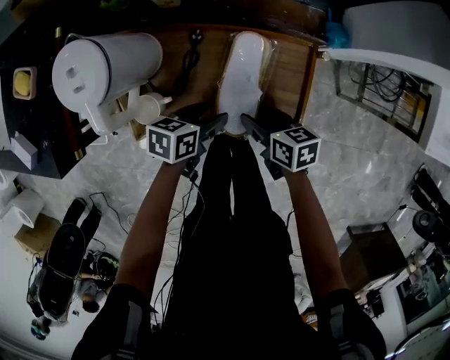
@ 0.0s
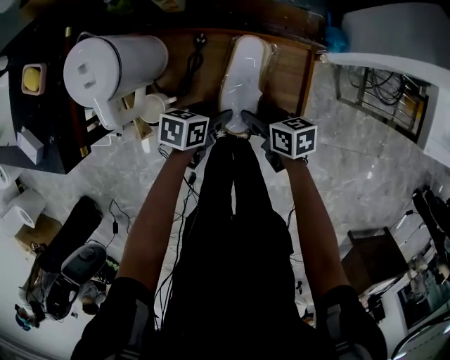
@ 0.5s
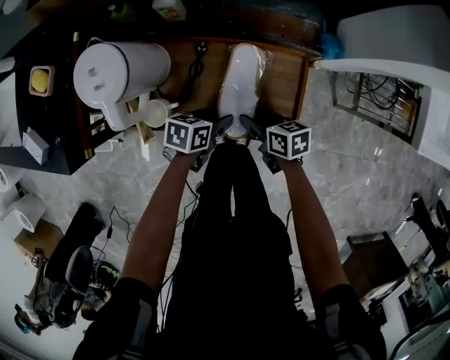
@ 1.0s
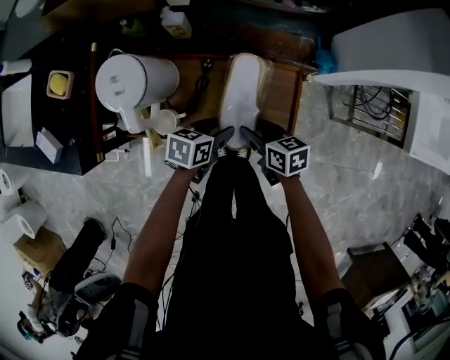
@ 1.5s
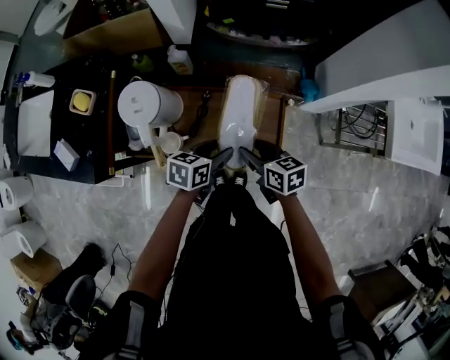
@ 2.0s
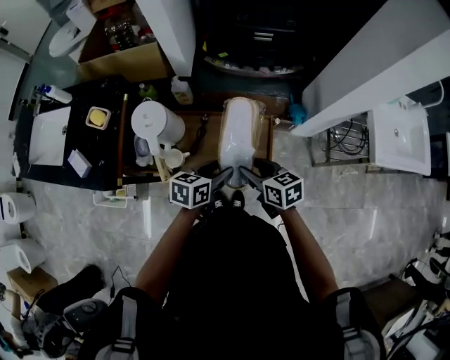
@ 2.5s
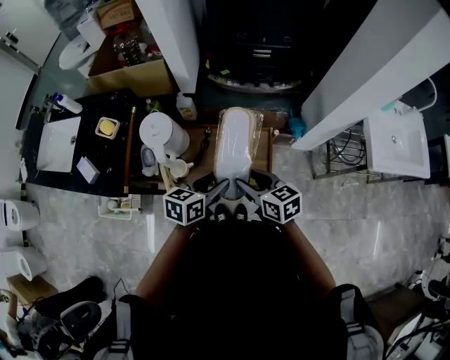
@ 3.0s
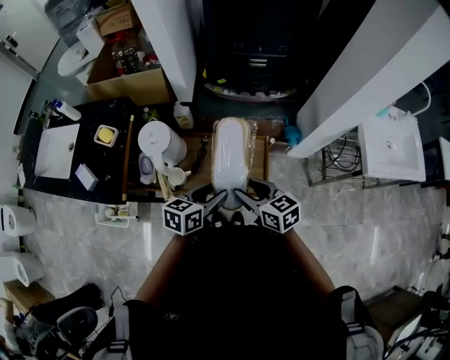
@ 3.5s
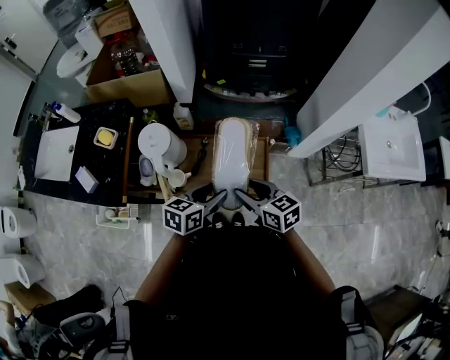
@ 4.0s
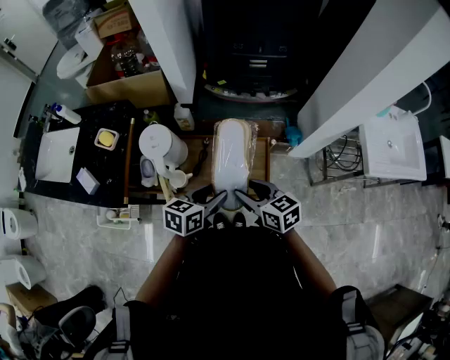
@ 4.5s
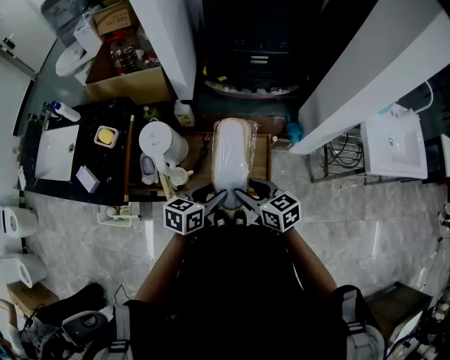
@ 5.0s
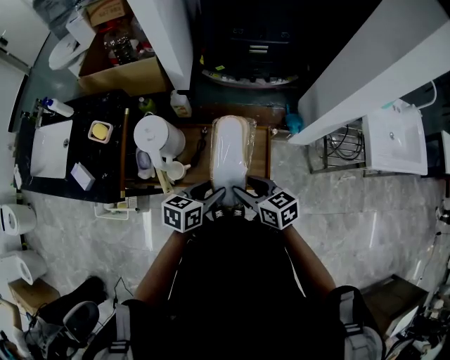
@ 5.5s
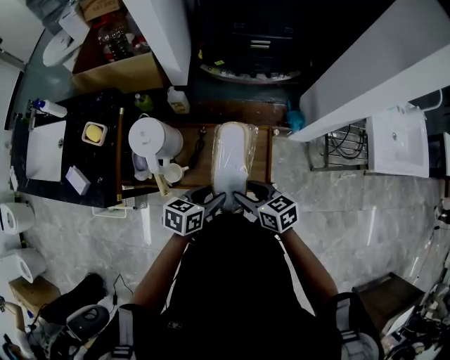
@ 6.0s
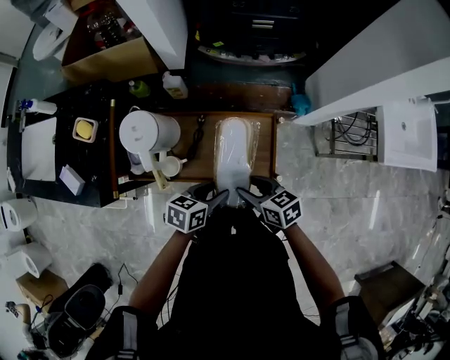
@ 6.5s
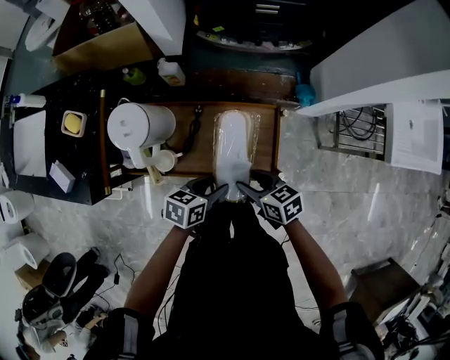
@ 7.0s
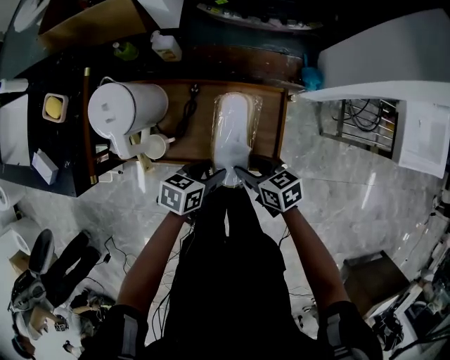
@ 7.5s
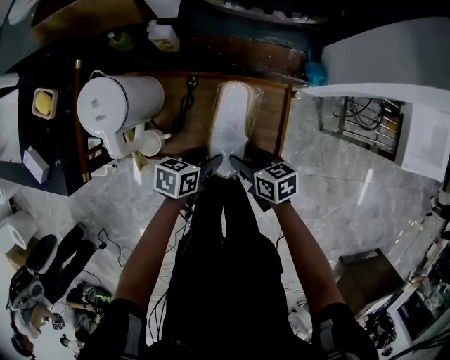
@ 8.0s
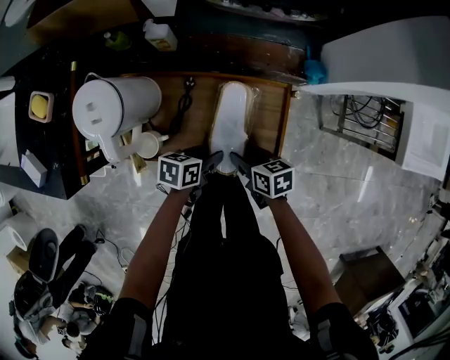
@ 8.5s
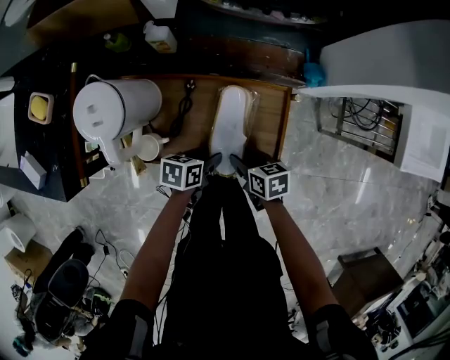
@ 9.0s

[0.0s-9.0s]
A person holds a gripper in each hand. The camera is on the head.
0.0s to 2.0s: Both grippers travel together upward, roughly 15 cm.
2.0s to 4.5s: Both grippers travel together upward and backward, roughly 15 cm.
4.5s to 7.0s: Both grippers move downward, about 15 cm.
7.0s to 9.0s: Both grippers move downward, about 15 cm.

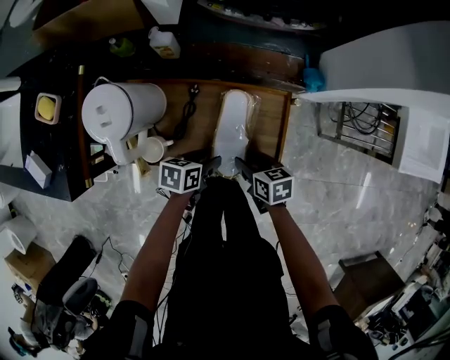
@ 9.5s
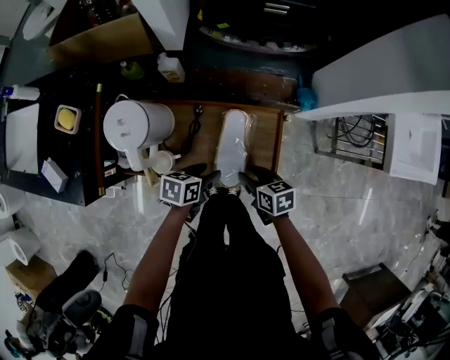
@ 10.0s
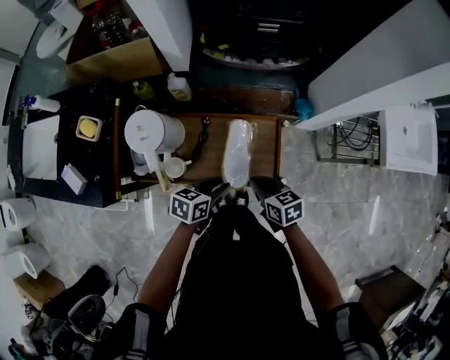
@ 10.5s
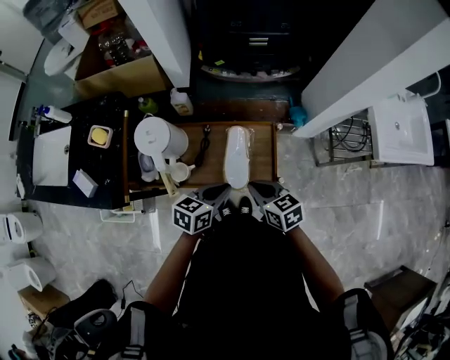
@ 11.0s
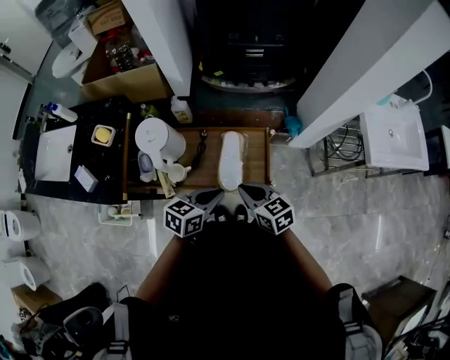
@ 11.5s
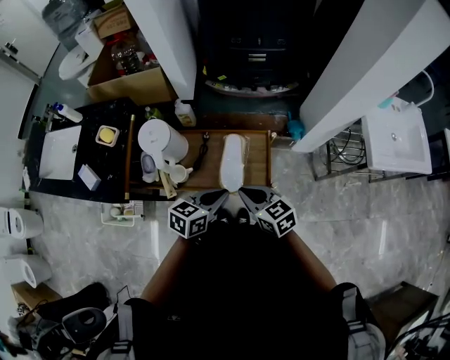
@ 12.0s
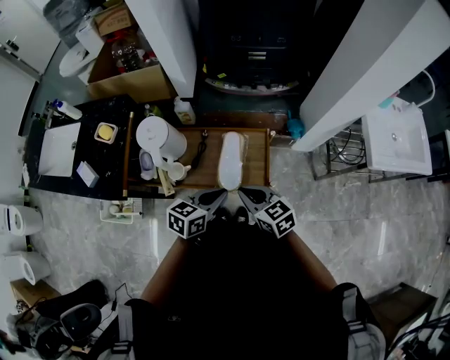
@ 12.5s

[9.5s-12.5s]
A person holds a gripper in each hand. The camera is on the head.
9.5s to 11.0s: The grippers both shift upward by roughly 20 cm. The right gripper changes its angle by approximately 20 degrees, and closes, while the left gripper turns by about 30 degrees, and closes its fingers.
11.0s to 12.5s: The left gripper shifts by some 5 cm, while the right gripper moves approximately 5 cm.

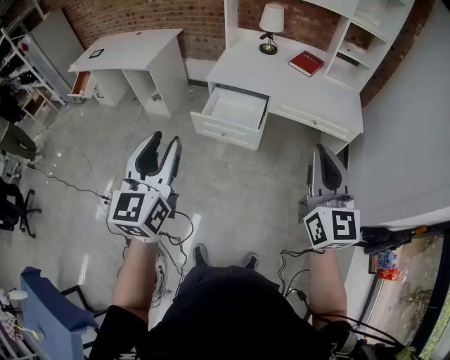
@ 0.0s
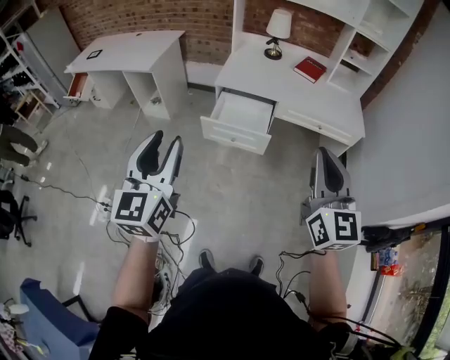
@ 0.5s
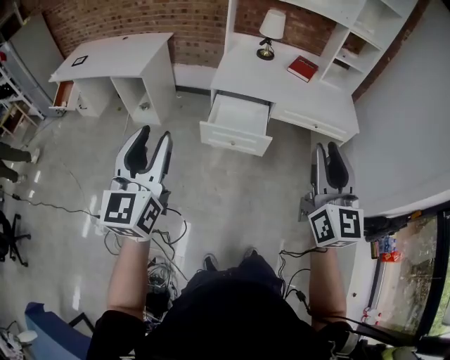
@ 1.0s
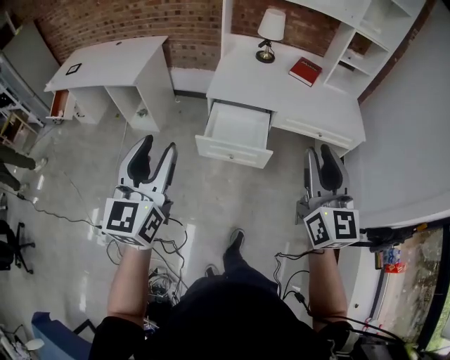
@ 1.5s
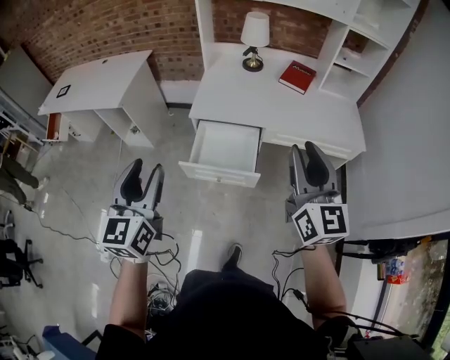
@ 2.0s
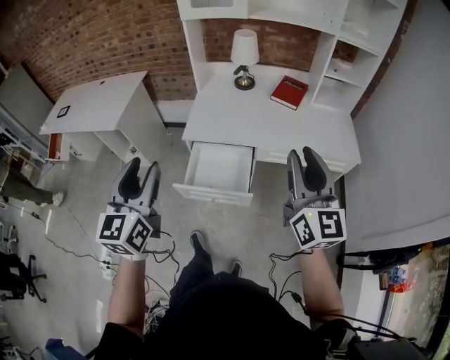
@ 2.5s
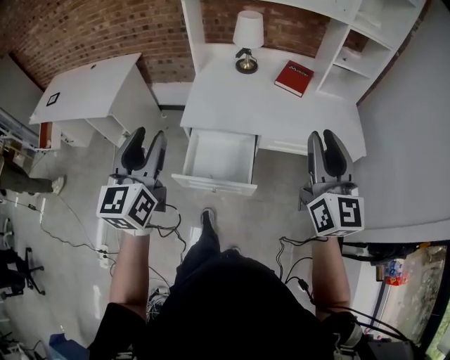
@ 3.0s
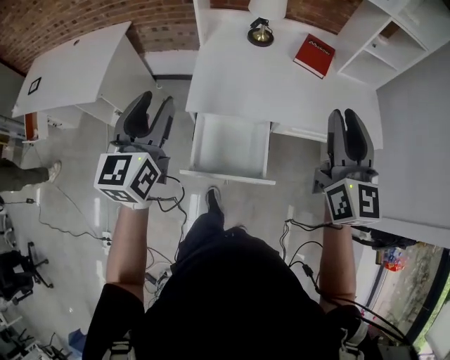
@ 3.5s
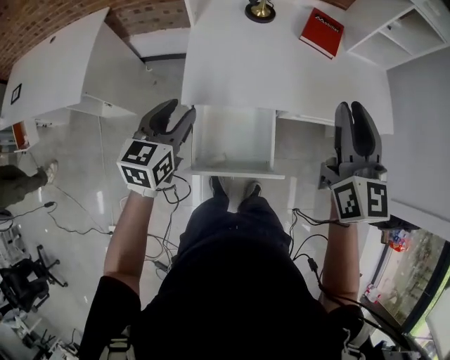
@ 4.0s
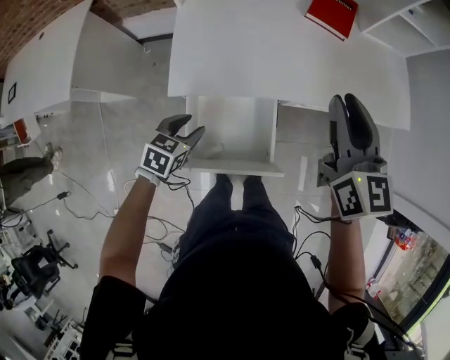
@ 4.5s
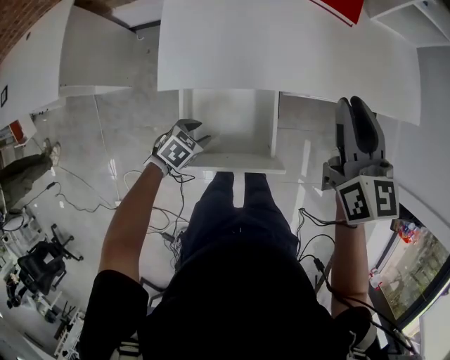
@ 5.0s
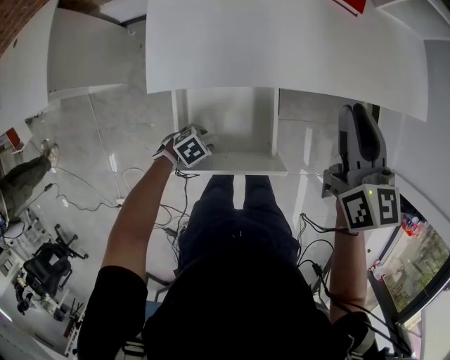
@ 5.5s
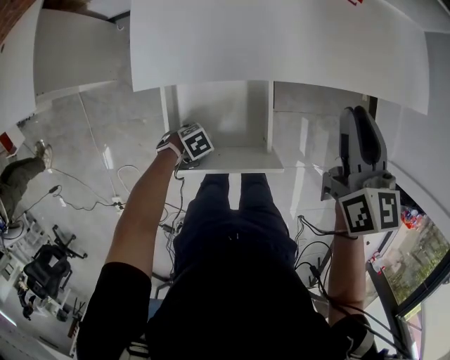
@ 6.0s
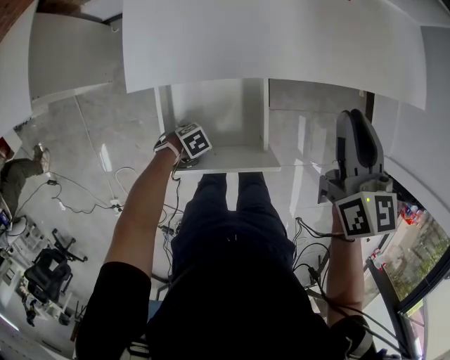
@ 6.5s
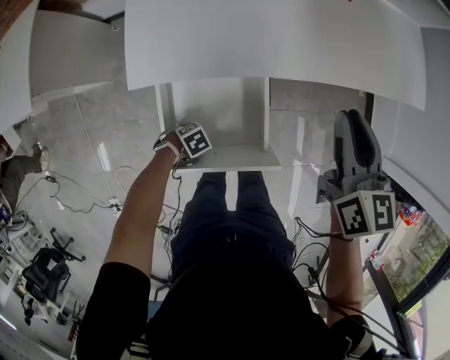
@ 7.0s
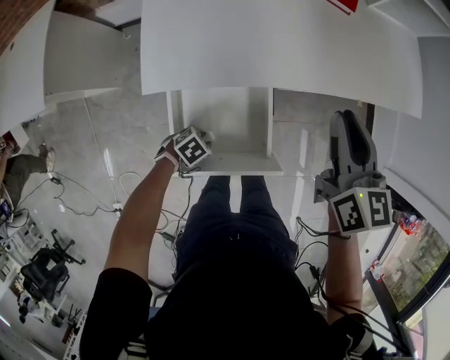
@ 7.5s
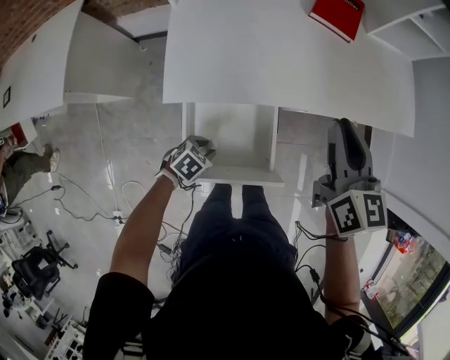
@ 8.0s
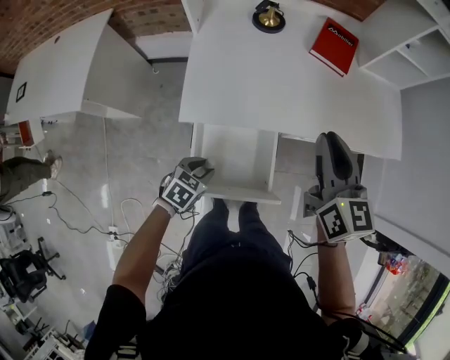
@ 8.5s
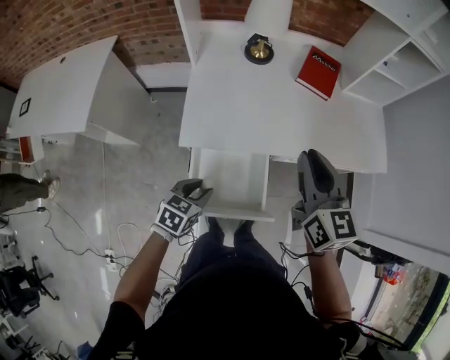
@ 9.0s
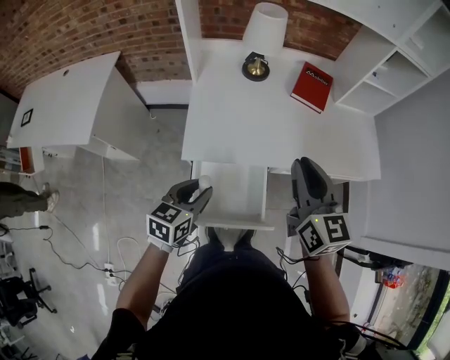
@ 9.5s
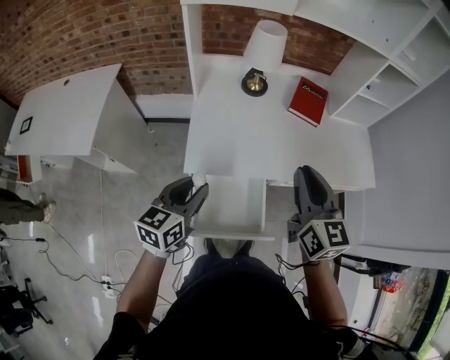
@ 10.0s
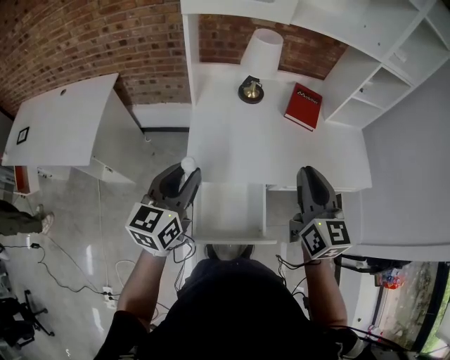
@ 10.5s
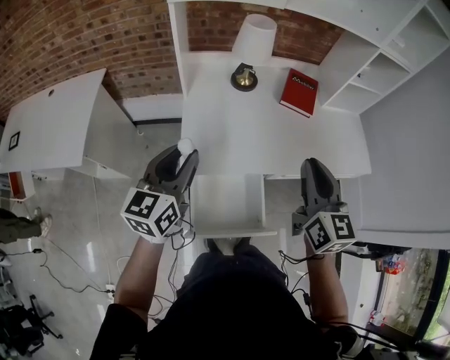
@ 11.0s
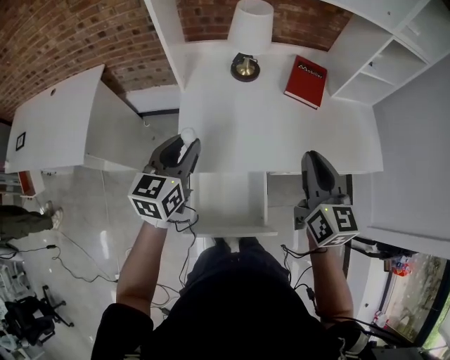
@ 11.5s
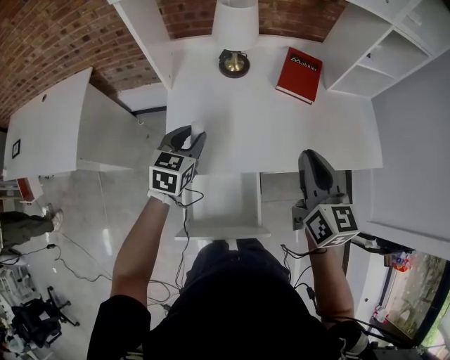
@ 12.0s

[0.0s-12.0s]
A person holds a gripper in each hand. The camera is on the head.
0.0s to 2.0s: The two grippers go roughly 25 cm forward. The right gripper opens its fingers.
2.0s to 4.0s: The left gripper goes roughly 40 cm forward and downward, and rotates about 30 degrees; the right gripper moves forward, roughly 30 cm.
4.0s to 6.0s: The right gripper is displaced downward by approximately 25 cm, and turns by some 30 degrees. Meanwhile the left gripper shifts some 50 cm downward, and points its fingers approximately 40 degrees further downward.
6.0s to 8.0s: The left gripper heads upward, covering about 15 cm, and turns by roughly 30 degrees. Meanwhile the right gripper heads upward, covering about 5 cm.
8.0s to 10.0s: The right gripper moves upward and to the left, about 15 cm. The left gripper heads upward, covering some 35 cm, and angles its fingers upward, by approximately 50 degrees.
10.0s to 12.0s: The left gripper goes about 20 cm forward, and swivels some 20 degrees. Meanwhile the right gripper is displaced forward, to the right and downward by some 15 cm.

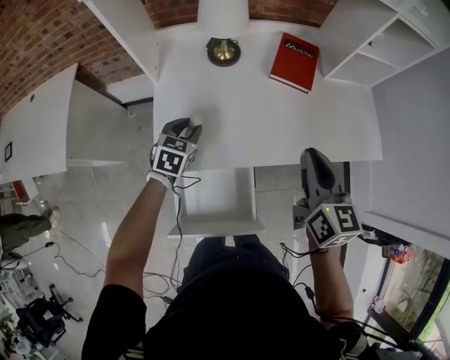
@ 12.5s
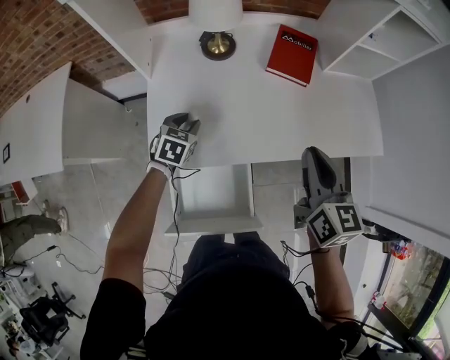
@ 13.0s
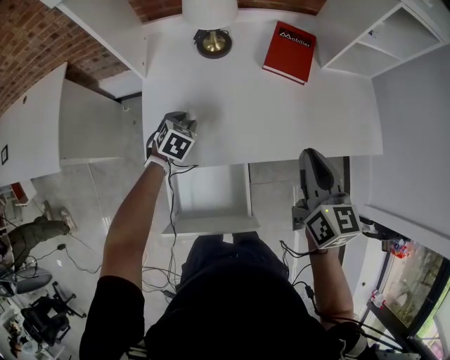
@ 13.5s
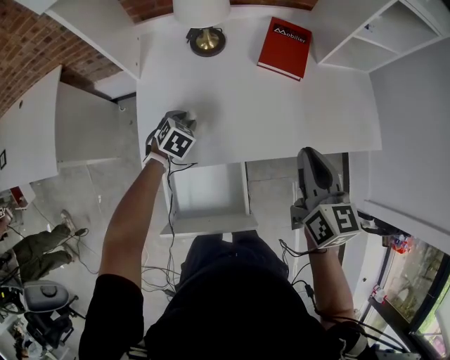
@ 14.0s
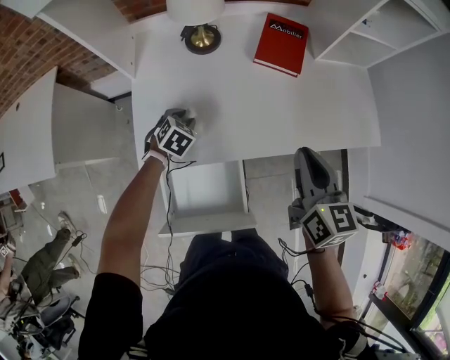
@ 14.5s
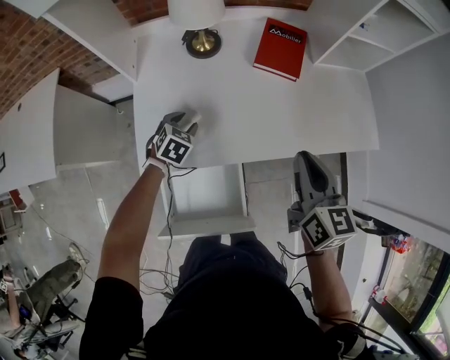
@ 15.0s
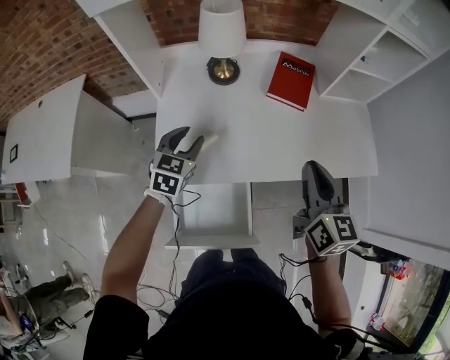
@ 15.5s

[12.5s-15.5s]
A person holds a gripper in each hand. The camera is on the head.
12.5s to 14.0s: The left gripper is displaced downward by roughly 10 cm, and rotates roughly 20 degrees.
14.0s to 15.5s: The left gripper moves upward, approximately 15 cm, and turns by some 30 degrees.
